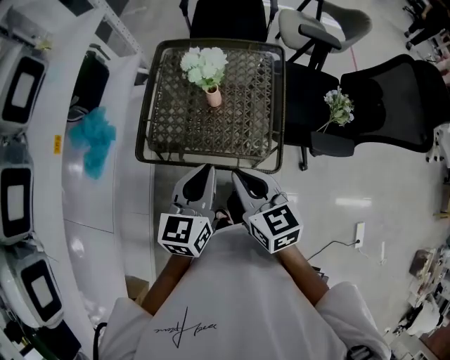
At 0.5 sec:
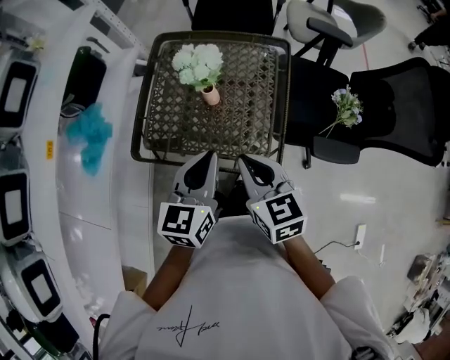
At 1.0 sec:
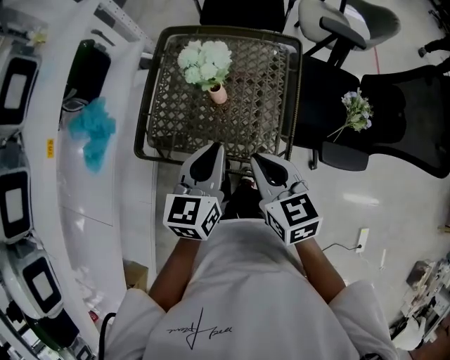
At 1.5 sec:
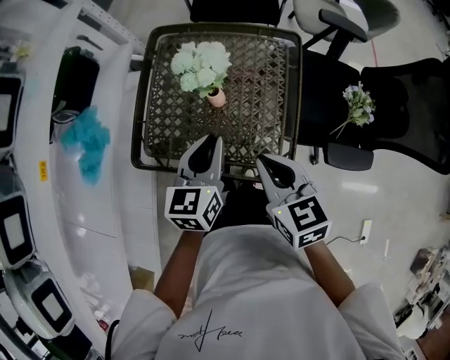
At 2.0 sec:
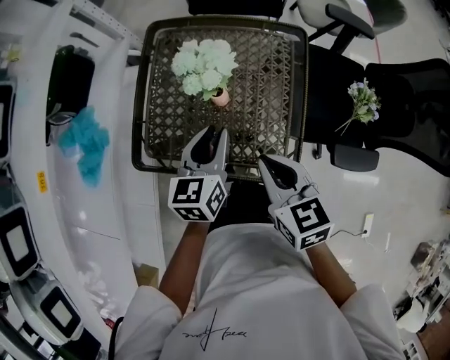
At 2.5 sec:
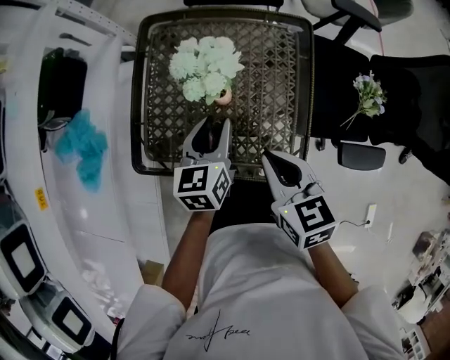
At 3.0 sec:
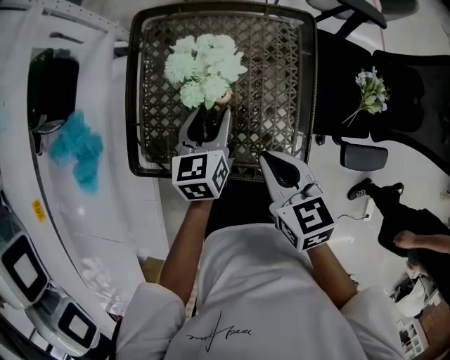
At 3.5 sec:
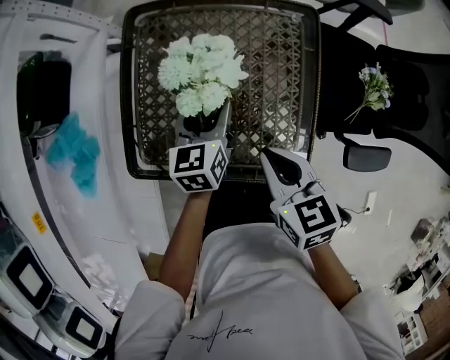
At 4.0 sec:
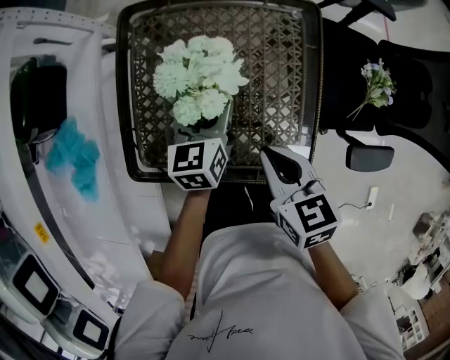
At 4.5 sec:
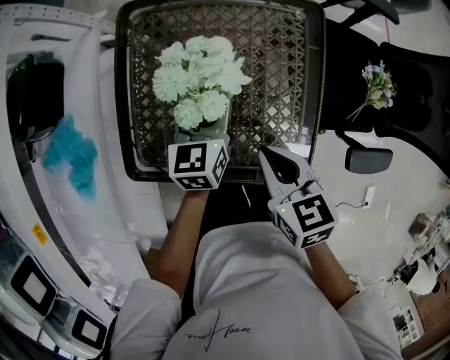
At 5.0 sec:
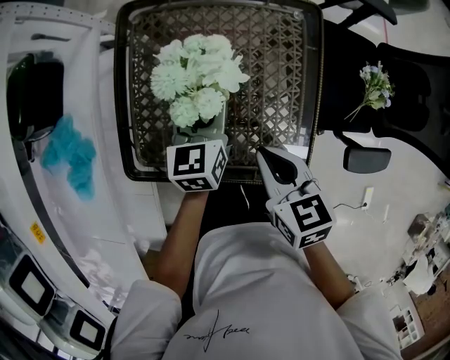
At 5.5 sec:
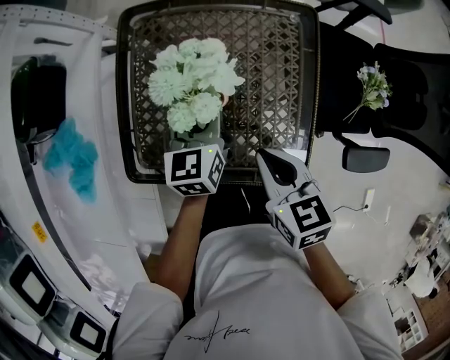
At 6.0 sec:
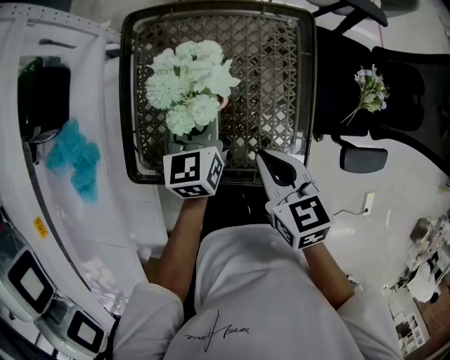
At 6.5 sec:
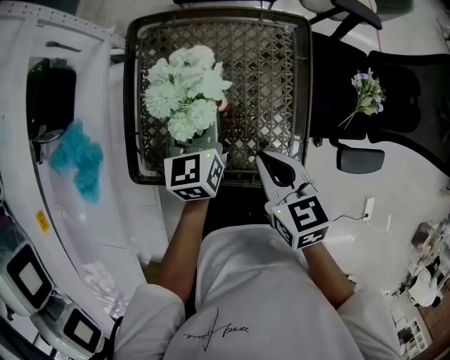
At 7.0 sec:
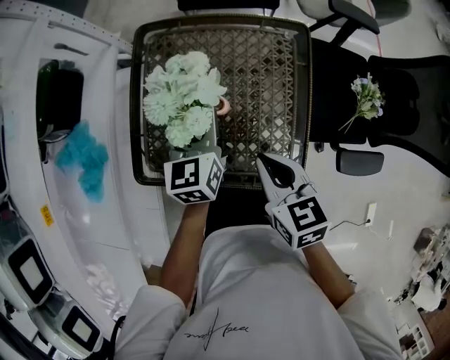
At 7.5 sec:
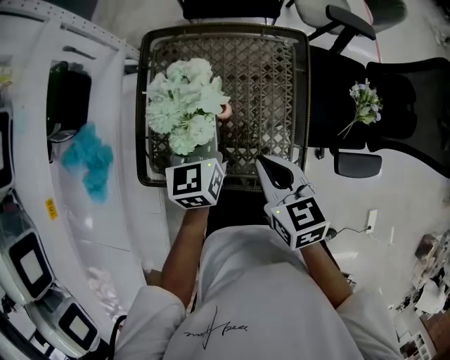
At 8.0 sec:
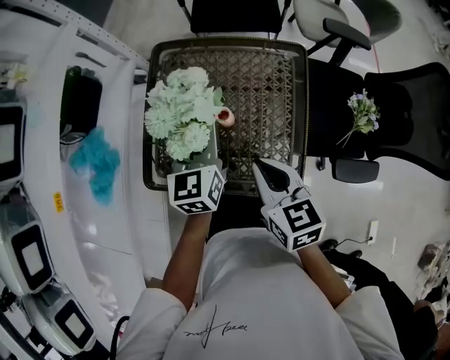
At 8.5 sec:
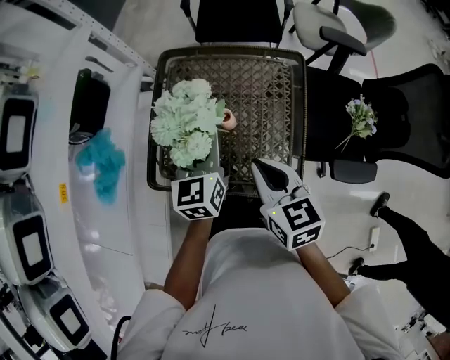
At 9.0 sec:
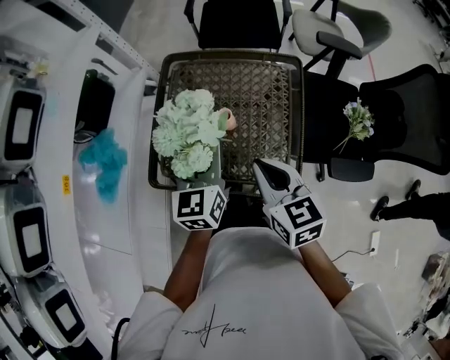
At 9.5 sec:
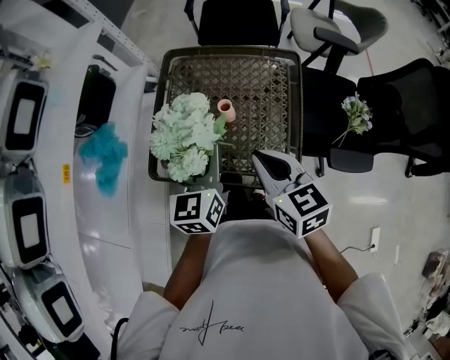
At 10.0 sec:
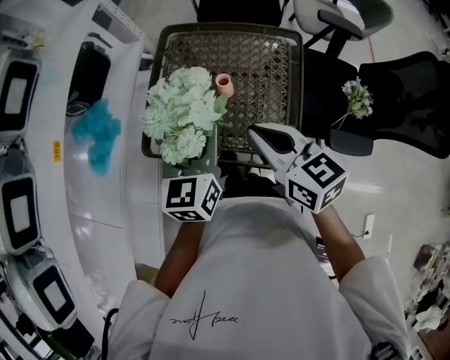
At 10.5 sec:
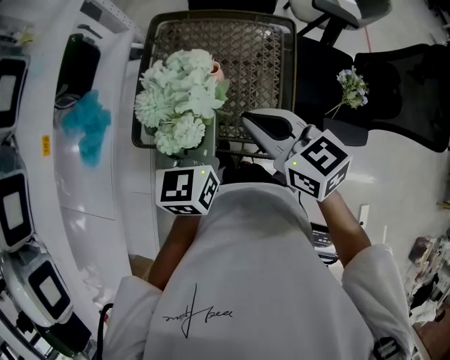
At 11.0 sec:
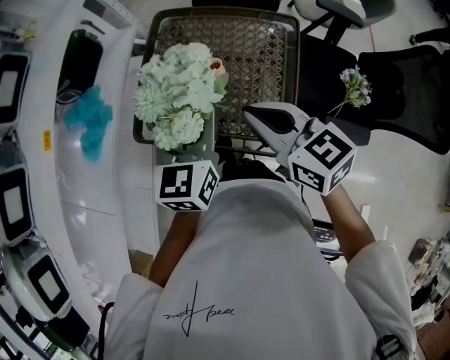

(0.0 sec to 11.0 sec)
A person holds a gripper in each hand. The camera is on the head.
0.0 sec - 2.0 sec: The left gripper goes approximately 20 cm forward and downward. Meanwhile the right gripper is displaced forward and downward by about 15 cm.
2.0 sec - 3.5 sec: The left gripper goes about 15 cm forward and downward, and opens. The right gripper shifts some 10 cm forward and downward.
3.5 sec - 5.5 sec: The left gripper closes up.
5.5 sec - 7.5 sec: The left gripper goes about 10 cm upward. The right gripper moves upward, about 5 cm.
7.5 sec - 9.0 sec: The right gripper travels upward by roughly 5 cm. Meanwhile the left gripper moves backward and upward, approximately 10 cm.
9.0 sec - 11.0 sec: The left gripper is displaced backward by approximately 5 cm. Meanwhile the right gripper swivels roughly 20 degrees.

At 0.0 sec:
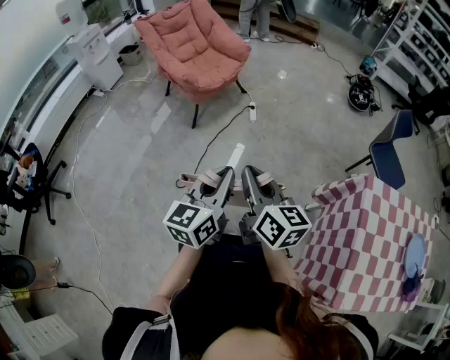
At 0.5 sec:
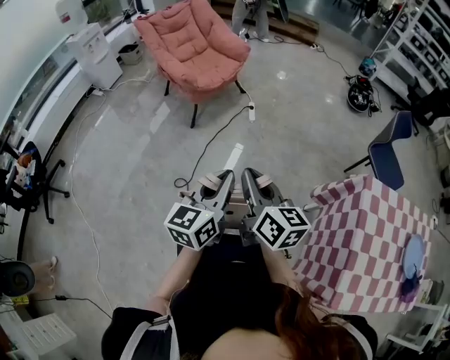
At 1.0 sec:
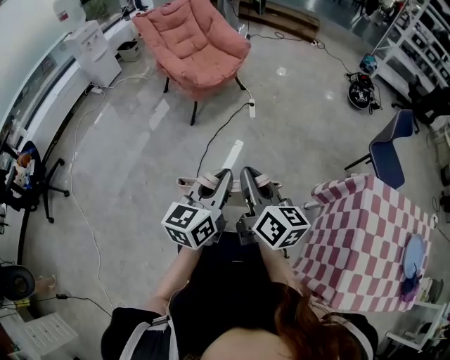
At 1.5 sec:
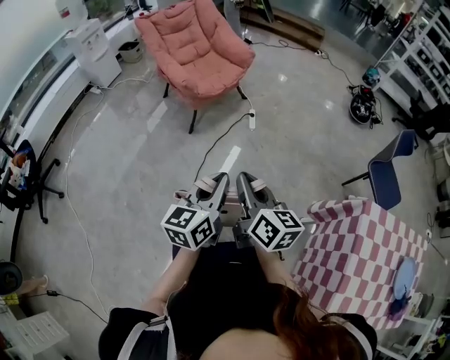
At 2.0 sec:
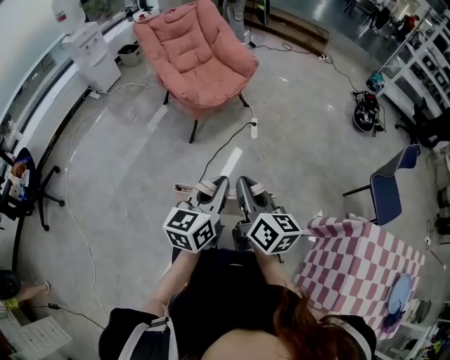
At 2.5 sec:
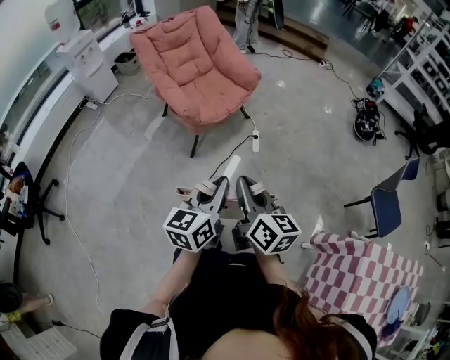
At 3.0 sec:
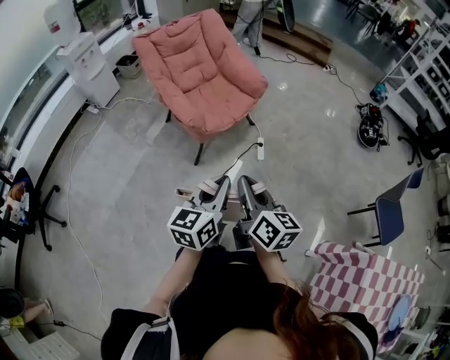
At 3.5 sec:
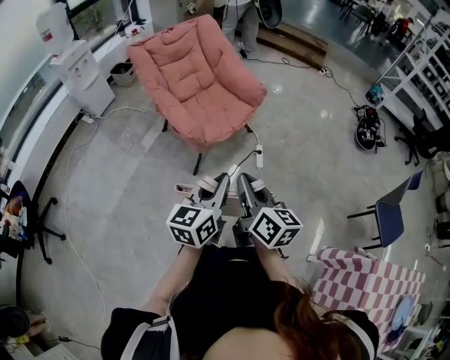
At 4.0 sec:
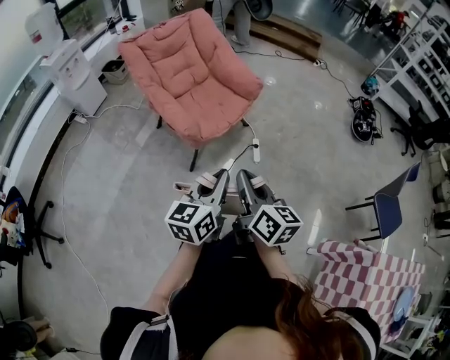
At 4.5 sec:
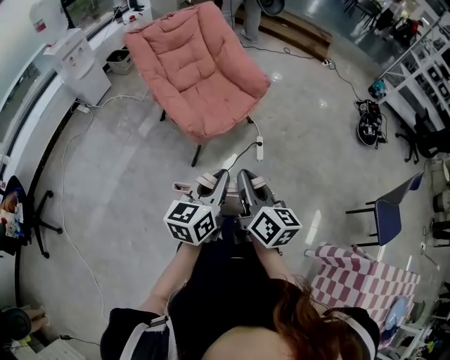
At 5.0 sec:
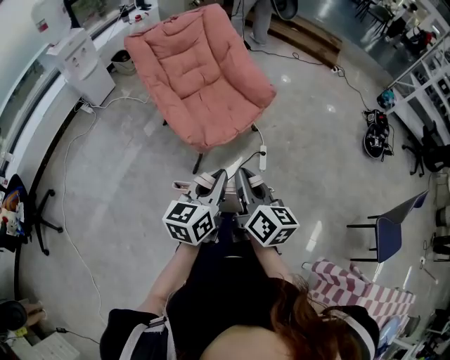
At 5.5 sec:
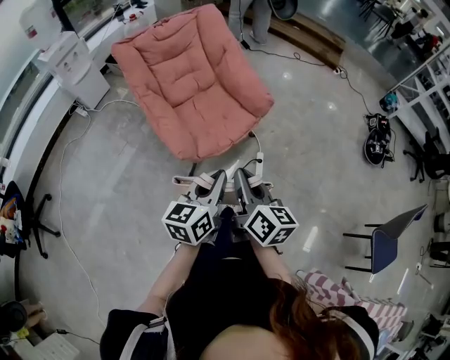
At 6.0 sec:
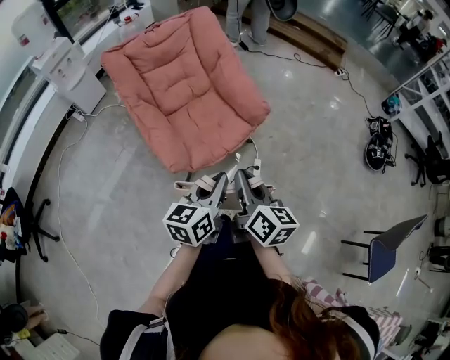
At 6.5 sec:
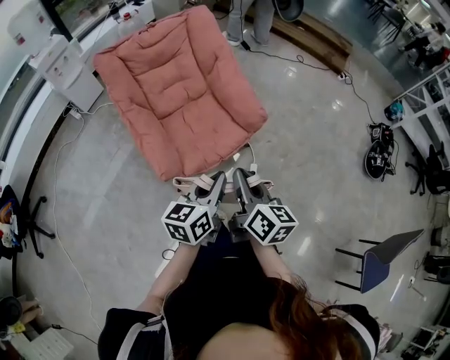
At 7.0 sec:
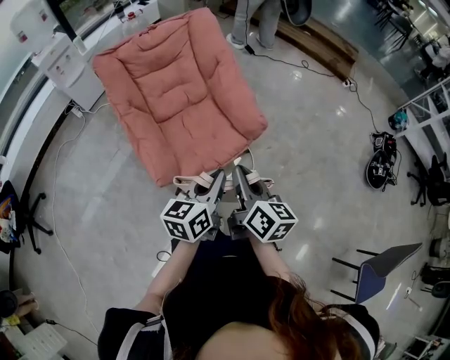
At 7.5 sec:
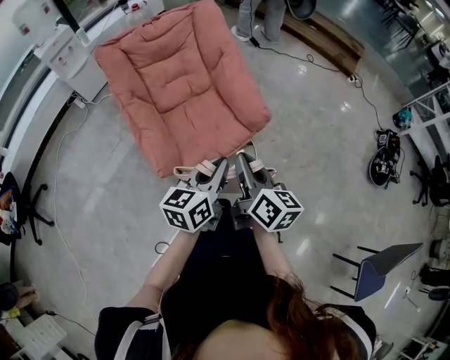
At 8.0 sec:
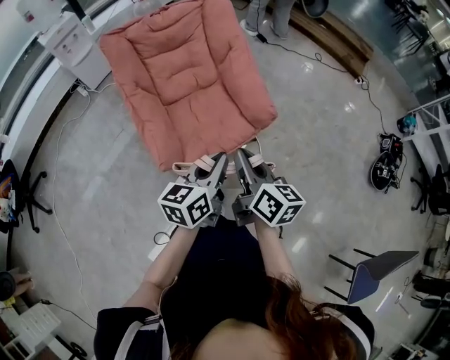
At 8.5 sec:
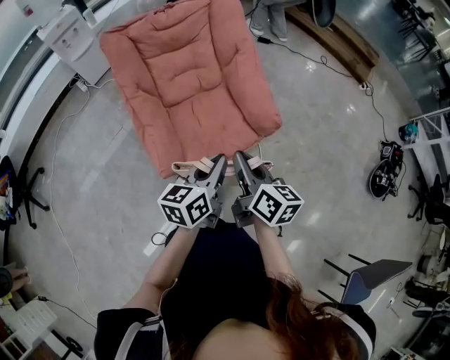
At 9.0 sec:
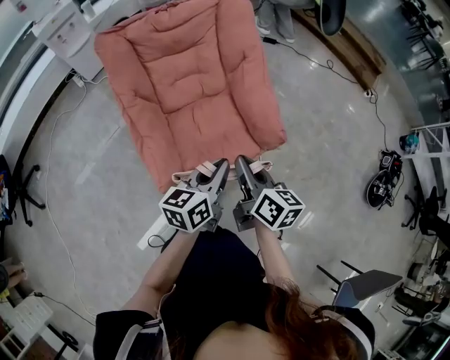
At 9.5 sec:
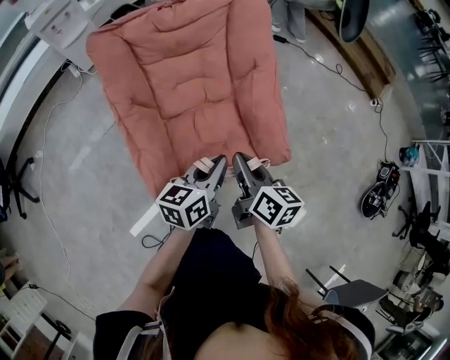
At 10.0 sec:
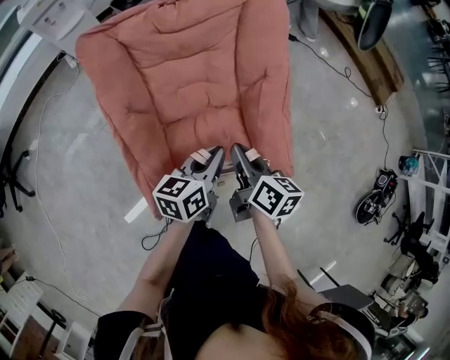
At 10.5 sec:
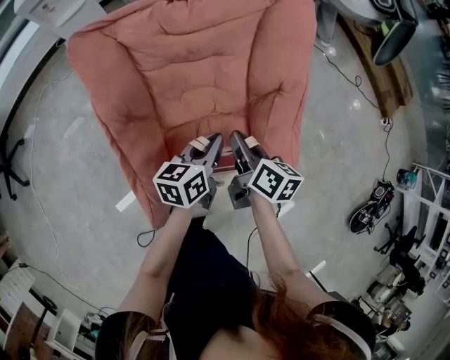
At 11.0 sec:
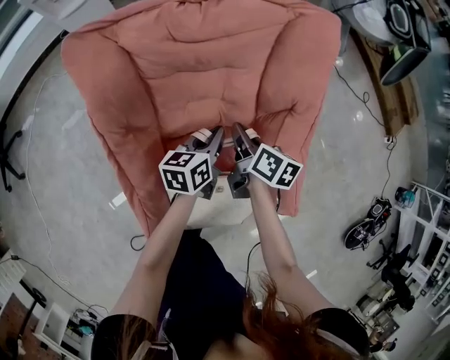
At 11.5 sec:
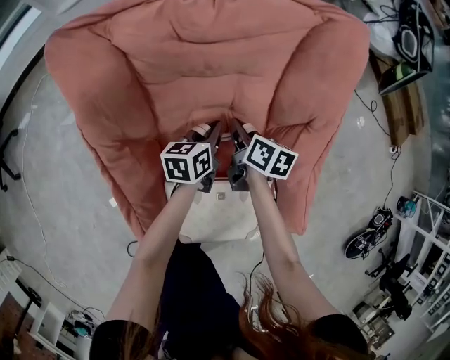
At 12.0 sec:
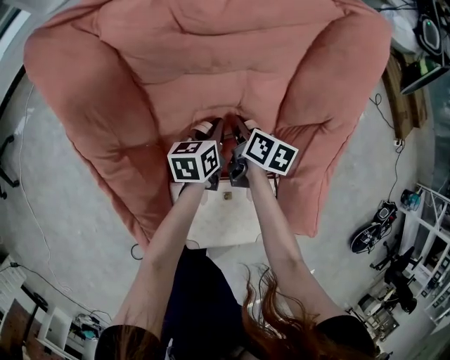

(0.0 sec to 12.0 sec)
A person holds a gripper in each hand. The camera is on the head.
0.0 sec - 2.0 sec: The grippers both shift forward by about 20 cm.
2.0 sec - 4.0 sec: Both grippers move forward and to the left, about 30 cm.
4.0 sec - 6.0 sec: The grippers both shift forward by approximately 30 cm.
6.0 sec - 8.0 sec: The two grippers go roughly 15 cm forward.
8.0 sec - 10.0 sec: Both grippers move forward, roughly 35 cm.
10.0 sec - 12.0 sec: Both grippers travel together downward and forward, approximately 40 cm.

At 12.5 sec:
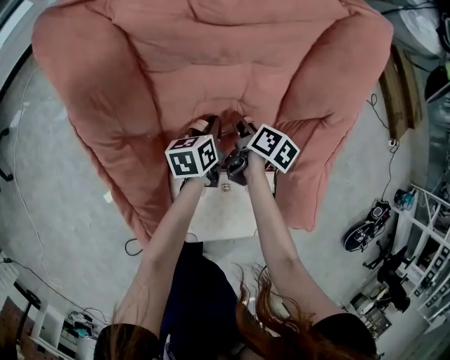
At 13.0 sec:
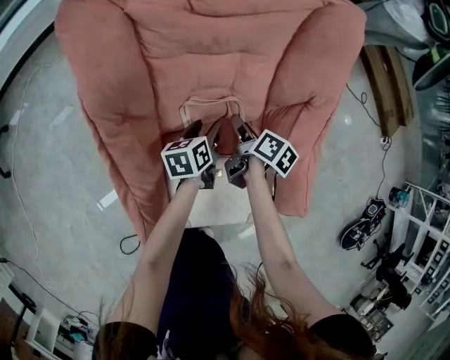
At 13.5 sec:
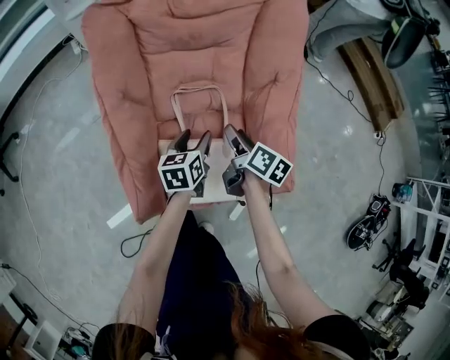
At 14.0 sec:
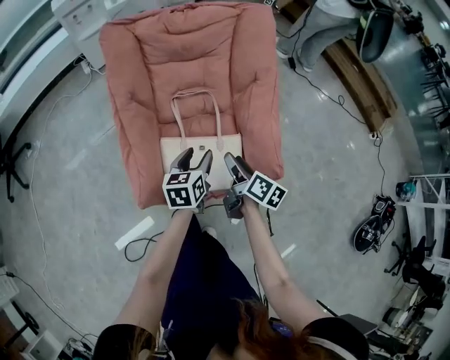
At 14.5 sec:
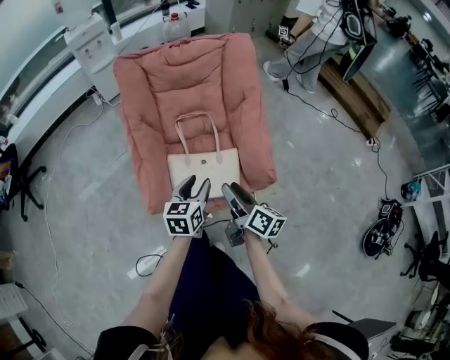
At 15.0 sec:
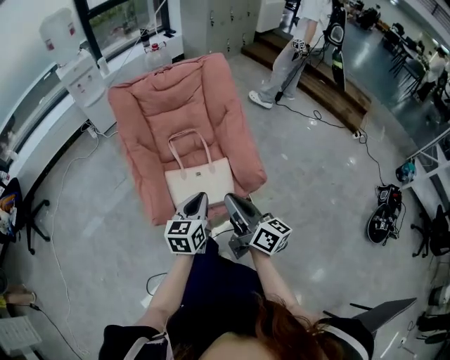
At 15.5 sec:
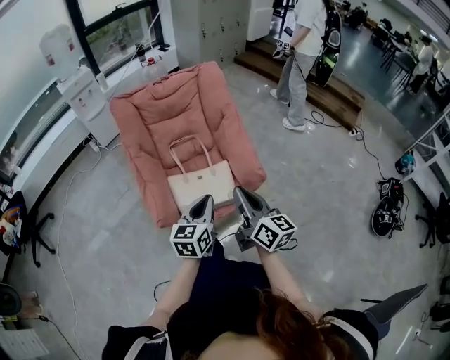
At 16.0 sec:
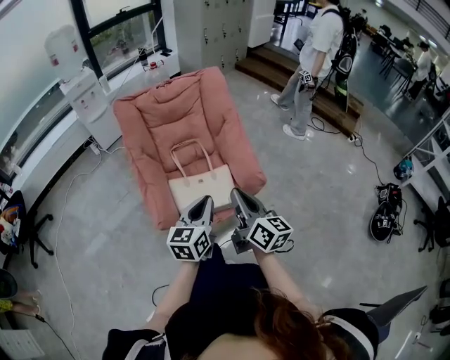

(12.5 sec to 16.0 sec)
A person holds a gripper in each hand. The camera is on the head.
12.5 sec - 14.5 sec: The two grippers travel together, backward, roughly 50 cm. The grippers both shift upward by about 30 cm. The left gripper changes its angle by some 30 degrees, and opens its fingers; the right gripper tips its fingers upward by about 40 degrees.
14.5 sec - 16.0 sec: The right gripper heads upward and backward, covering some 20 cm, swivels roughly 30 degrees, and closes its fingers; the left gripper heads backward and upward, covering about 20 cm, and closes its fingers.
